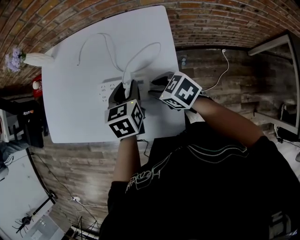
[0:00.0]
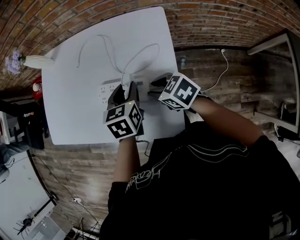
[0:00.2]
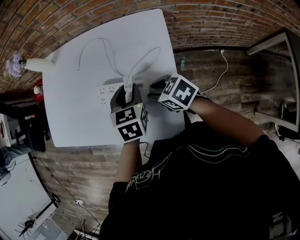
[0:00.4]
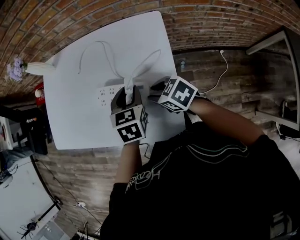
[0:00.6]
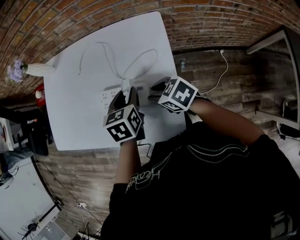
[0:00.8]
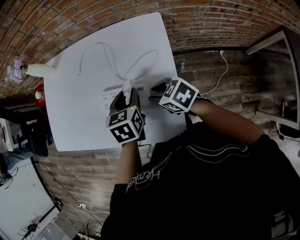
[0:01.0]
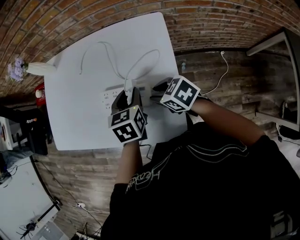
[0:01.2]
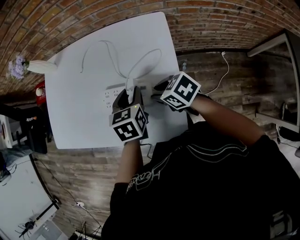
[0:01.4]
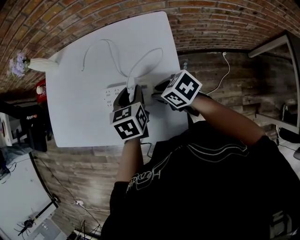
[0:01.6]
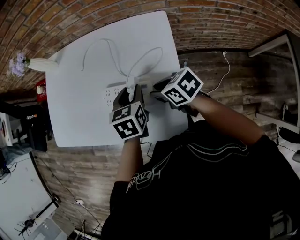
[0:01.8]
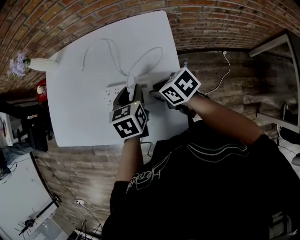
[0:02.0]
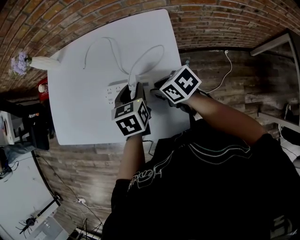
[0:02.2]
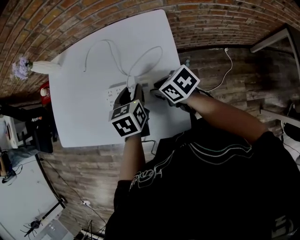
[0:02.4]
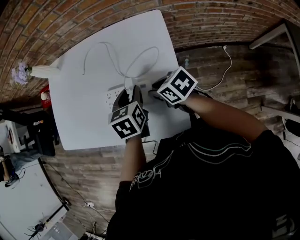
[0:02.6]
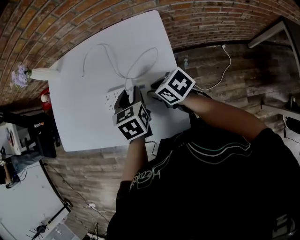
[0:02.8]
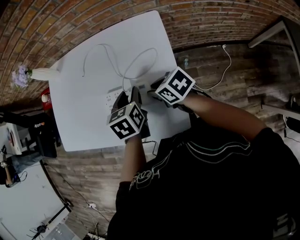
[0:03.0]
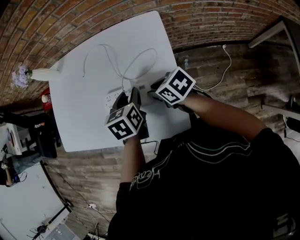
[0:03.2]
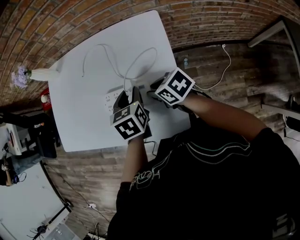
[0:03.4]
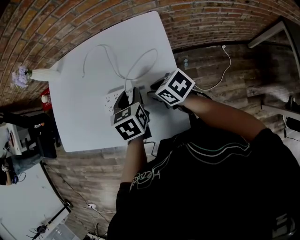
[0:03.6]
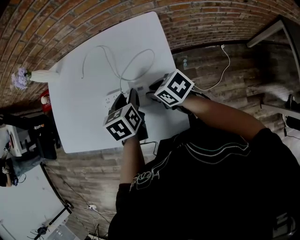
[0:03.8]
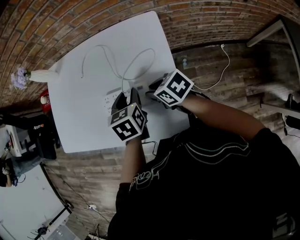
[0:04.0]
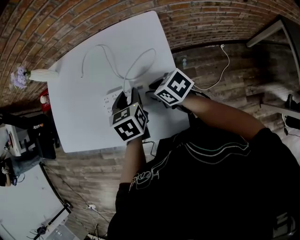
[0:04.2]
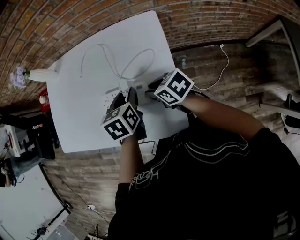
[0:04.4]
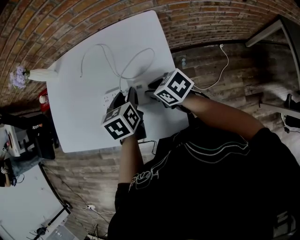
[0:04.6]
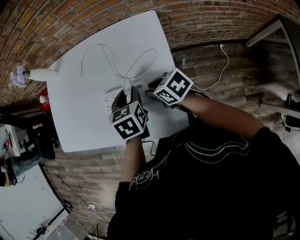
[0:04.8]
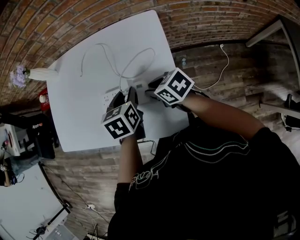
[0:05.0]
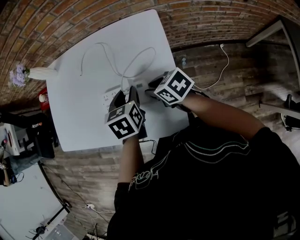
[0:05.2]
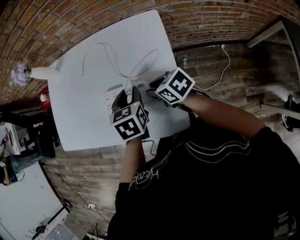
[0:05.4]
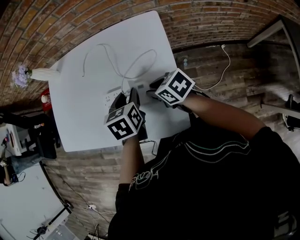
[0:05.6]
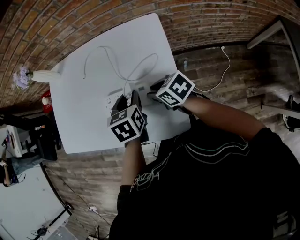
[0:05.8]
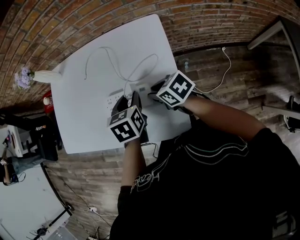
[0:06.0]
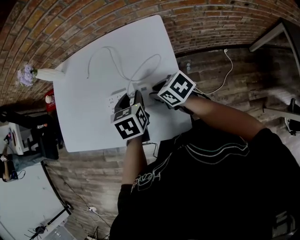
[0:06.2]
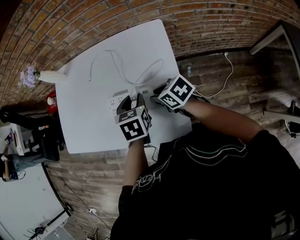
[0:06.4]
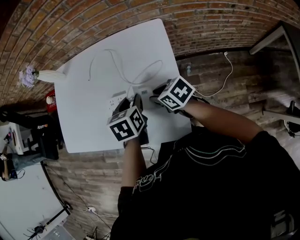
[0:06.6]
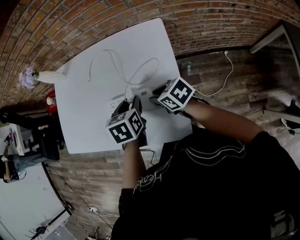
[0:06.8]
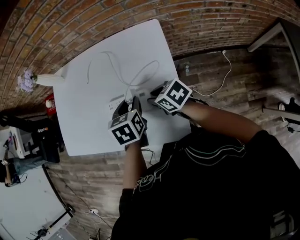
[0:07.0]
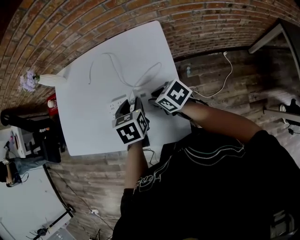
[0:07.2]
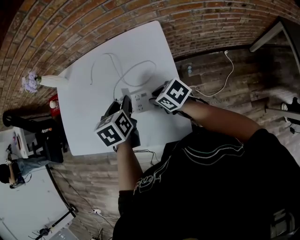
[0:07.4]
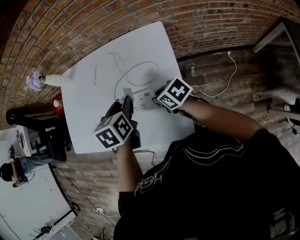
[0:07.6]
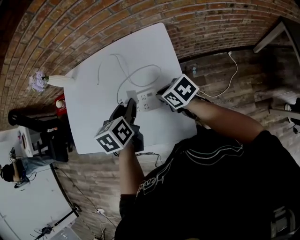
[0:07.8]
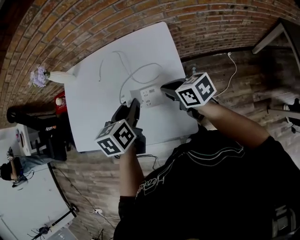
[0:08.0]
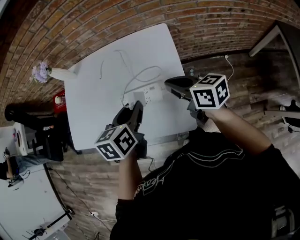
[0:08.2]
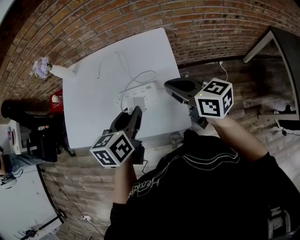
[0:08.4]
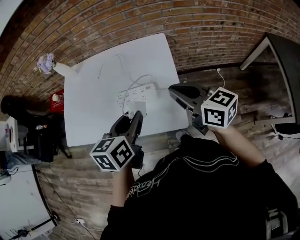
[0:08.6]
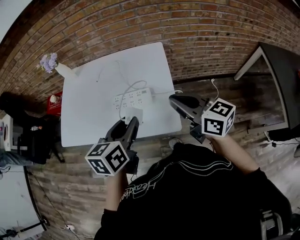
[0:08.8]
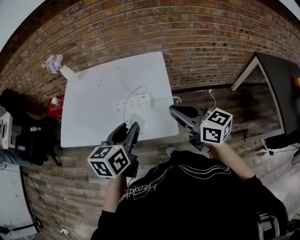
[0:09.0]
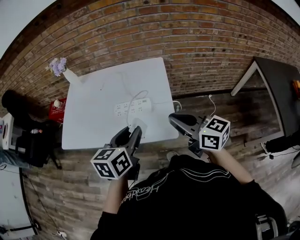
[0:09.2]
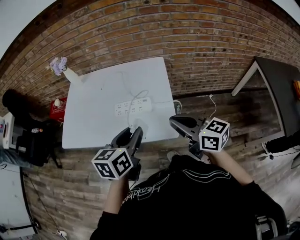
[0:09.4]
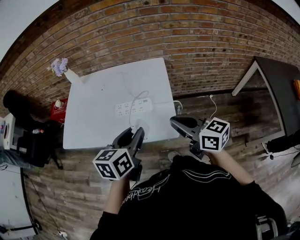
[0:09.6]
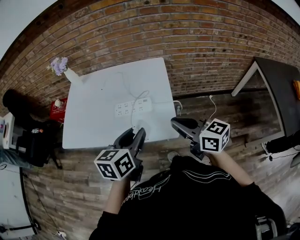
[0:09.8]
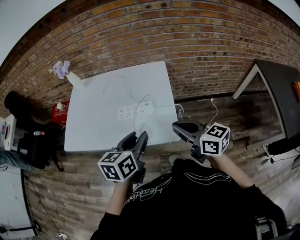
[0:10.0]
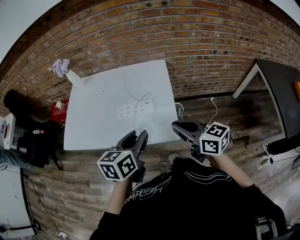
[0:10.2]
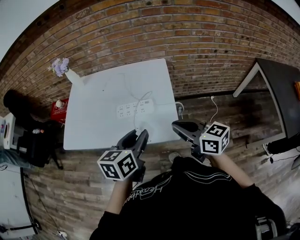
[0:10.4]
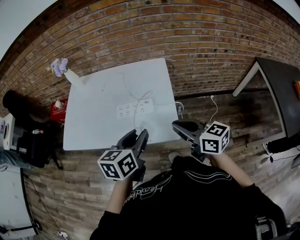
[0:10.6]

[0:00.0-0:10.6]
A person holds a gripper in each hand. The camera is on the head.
0:00.0 to 0:06.0: The grippers move only a little.
0:06.0 to 0:07.6: The left gripper travels upward by roughly 5 cm.
0:07.6 to 0:09.0: The right gripper goes about 30 cm upward and backward, tilts its fingers approximately 30 degrees upward, and closes up, while the left gripper travels backward and upward by some 25 cm, and changes its angle by roughly 20 degrees.
0:09.0 to 0:10.6: The grippers make only small movements.

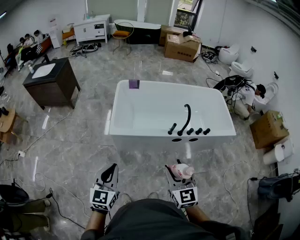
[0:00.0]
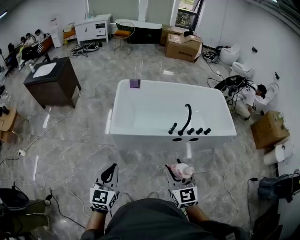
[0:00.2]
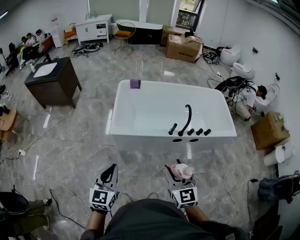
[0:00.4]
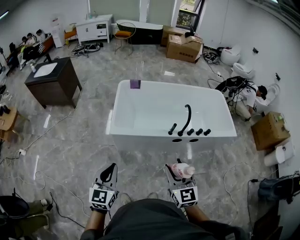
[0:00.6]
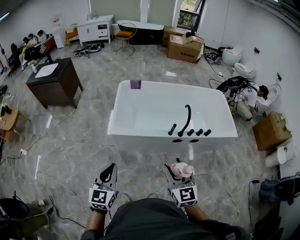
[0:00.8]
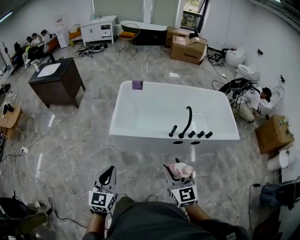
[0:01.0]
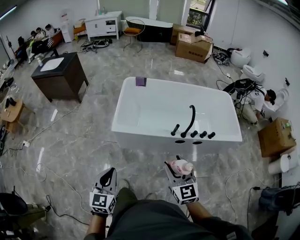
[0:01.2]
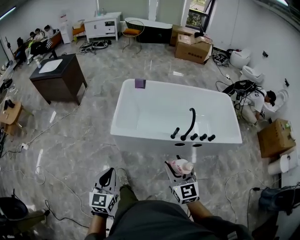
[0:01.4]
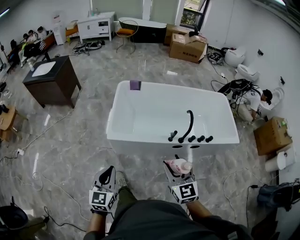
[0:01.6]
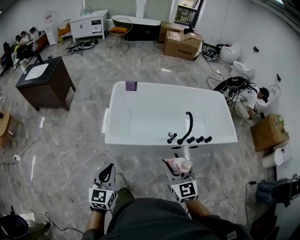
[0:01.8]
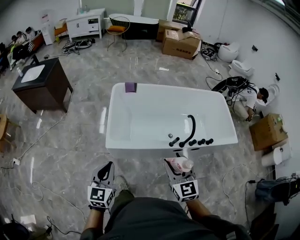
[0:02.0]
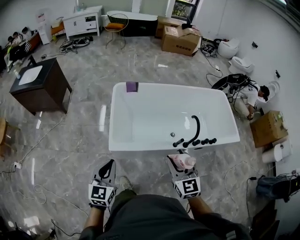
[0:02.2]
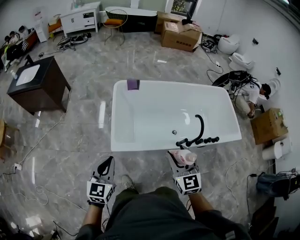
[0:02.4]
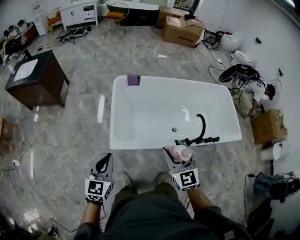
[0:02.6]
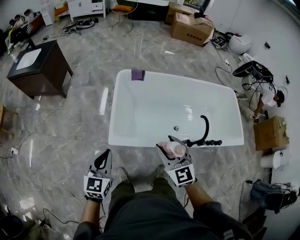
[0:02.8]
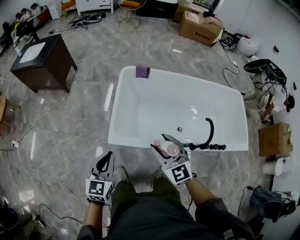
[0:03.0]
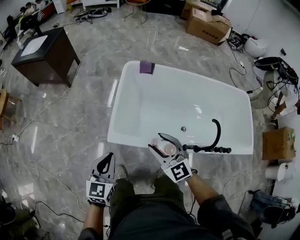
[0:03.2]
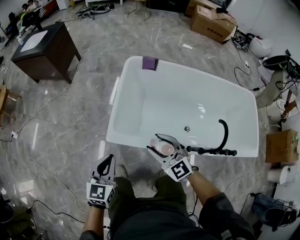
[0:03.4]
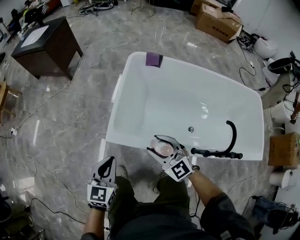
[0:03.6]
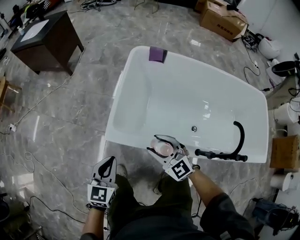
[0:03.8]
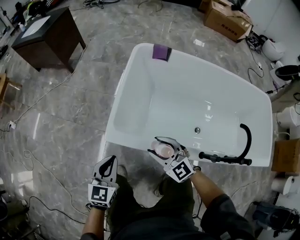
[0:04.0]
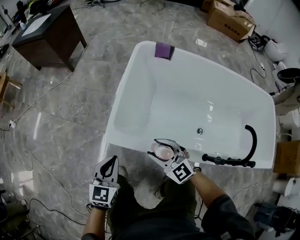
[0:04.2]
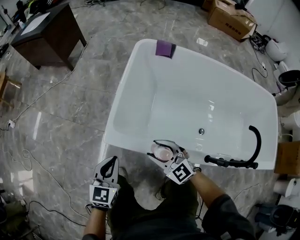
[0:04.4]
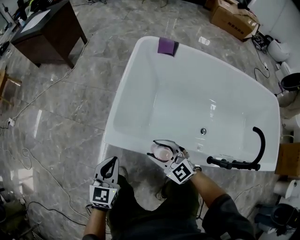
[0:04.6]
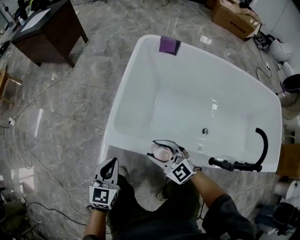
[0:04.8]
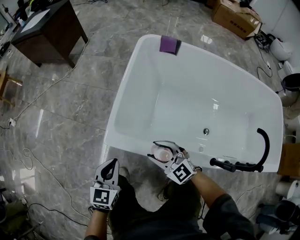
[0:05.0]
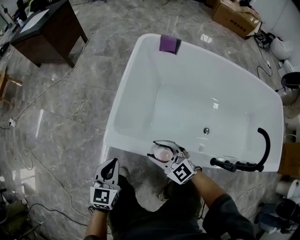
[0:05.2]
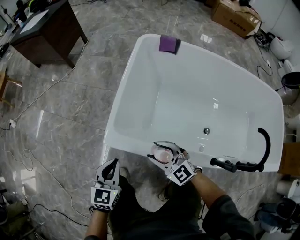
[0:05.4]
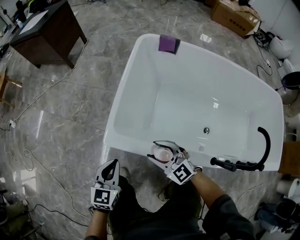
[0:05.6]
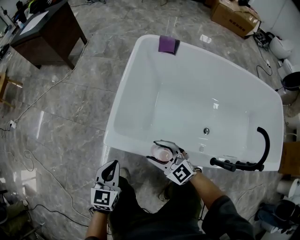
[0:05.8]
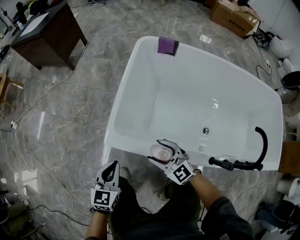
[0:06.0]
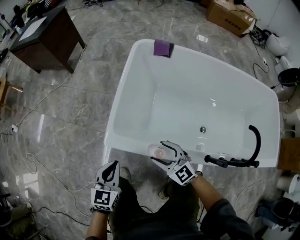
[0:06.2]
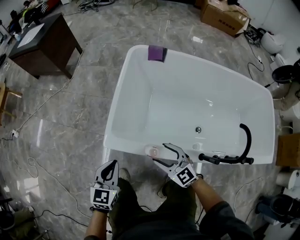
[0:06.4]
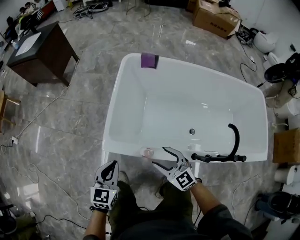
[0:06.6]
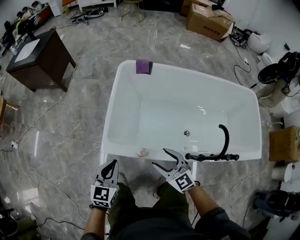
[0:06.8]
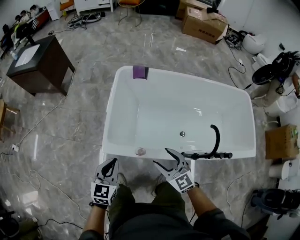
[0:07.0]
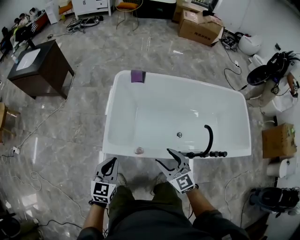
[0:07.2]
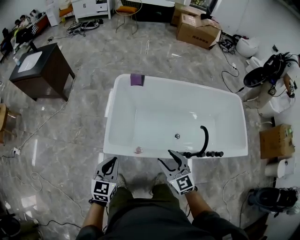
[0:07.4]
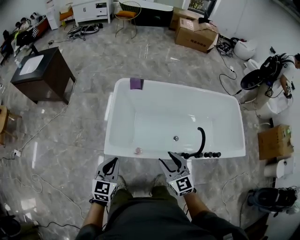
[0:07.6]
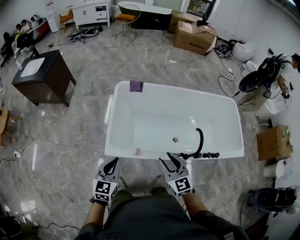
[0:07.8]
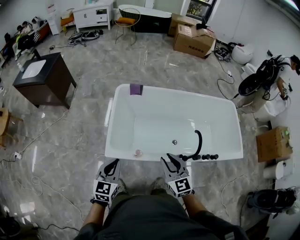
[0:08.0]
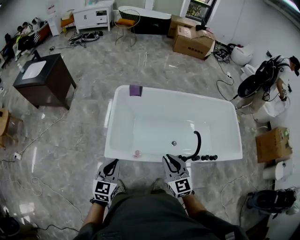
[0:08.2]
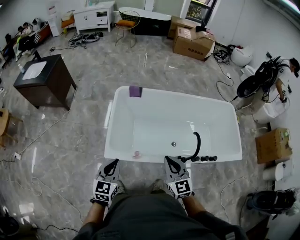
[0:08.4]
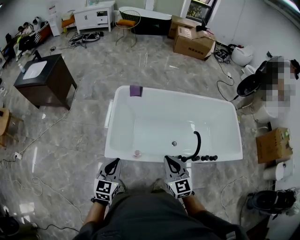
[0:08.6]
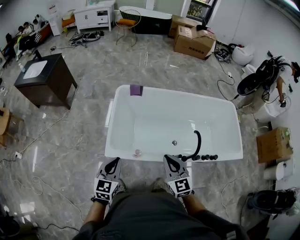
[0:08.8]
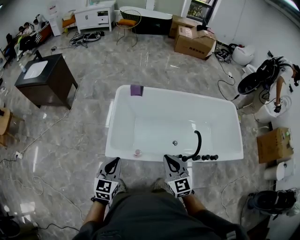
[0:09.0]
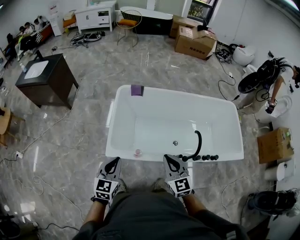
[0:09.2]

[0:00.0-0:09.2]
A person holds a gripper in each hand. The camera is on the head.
0:00.0 to 0:01.6: The left gripper shifts approximately 5 cm forward. Meanwhile the right gripper moves forward, roughly 10 cm.
0:01.6 to 0:03.0: The right gripper shifts some 30 cm forward and to the left, and changes its angle by roughly 20 degrees; the left gripper goes some 25 cm forward.
0:03.0 to 0:04.6: Both grippers travel together downward, some 35 cm. The right gripper turns by approximately 30 degrees.
0:04.6 to 0:06.2: The grippers make only small movements.
0:06.2 to 0:07.6: Both grippers move upward, some 30 cm. The right gripper rotates roughly 30 degrees.
0:07.6 to 0:09.2: The right gripper heads upward, covering approximately 5 cm, and closes.

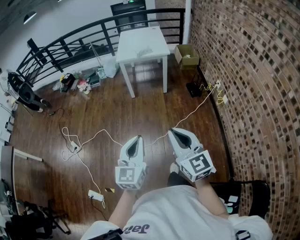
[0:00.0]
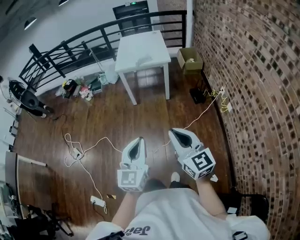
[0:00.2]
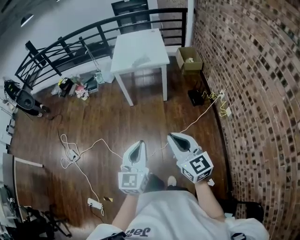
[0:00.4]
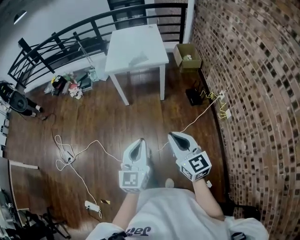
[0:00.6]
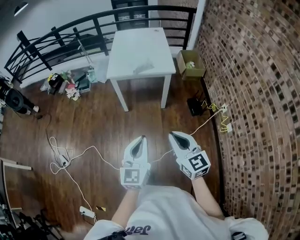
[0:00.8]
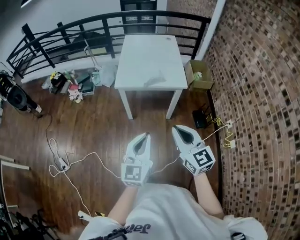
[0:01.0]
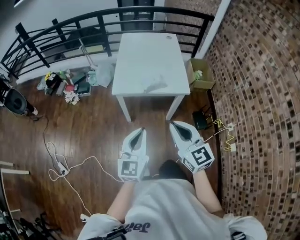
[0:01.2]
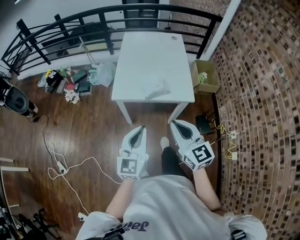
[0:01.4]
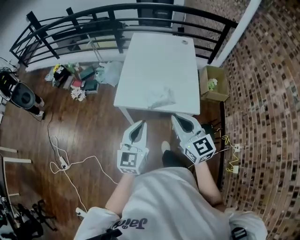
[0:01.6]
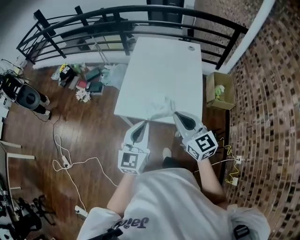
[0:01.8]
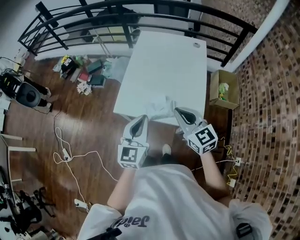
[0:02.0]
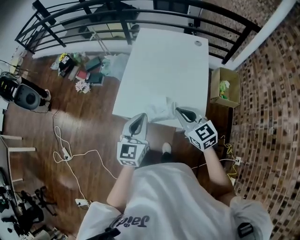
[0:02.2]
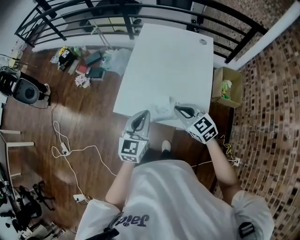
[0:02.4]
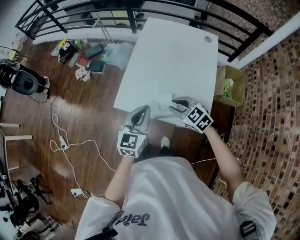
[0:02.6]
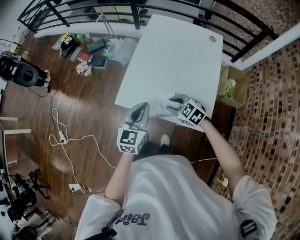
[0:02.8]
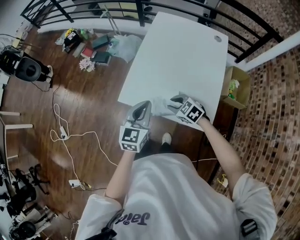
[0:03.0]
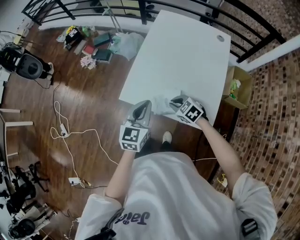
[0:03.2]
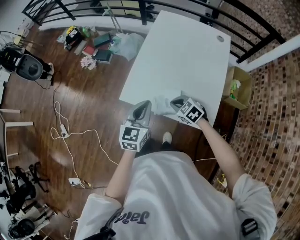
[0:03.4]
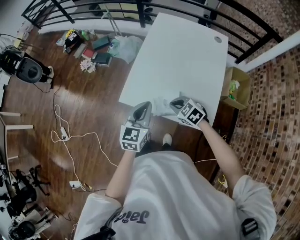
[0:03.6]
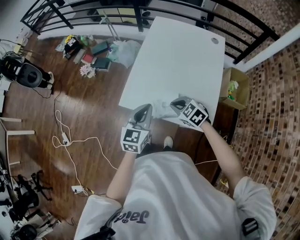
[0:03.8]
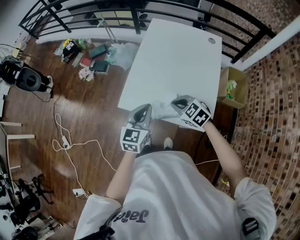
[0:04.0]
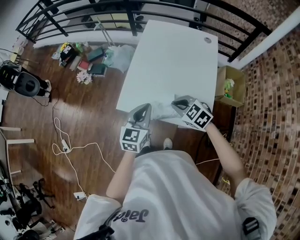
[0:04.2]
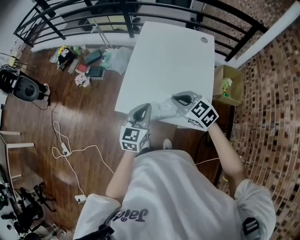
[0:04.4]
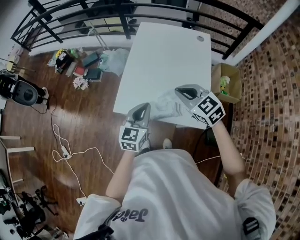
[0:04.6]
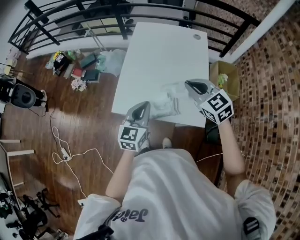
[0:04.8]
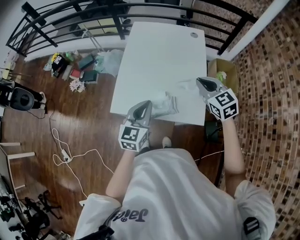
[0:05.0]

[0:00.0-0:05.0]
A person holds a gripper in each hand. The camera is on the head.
0:00.0 to 0:01.6: The two grippers travel together, forward, roughly 80 cm.
0:01.6 to 0:03.4: The right gripper heads downward, covering roughly 25 cm, tips its fingers downward by some 50 degrees, and opens and closes again; the left gripper shifts by some 20 cm.
0:03.4 to 0:05.0: The right gripper moves upward, roughly 20 cm, and changes its angle by approximately 40 degrees. The left gripper changes place by some 5 cm.
